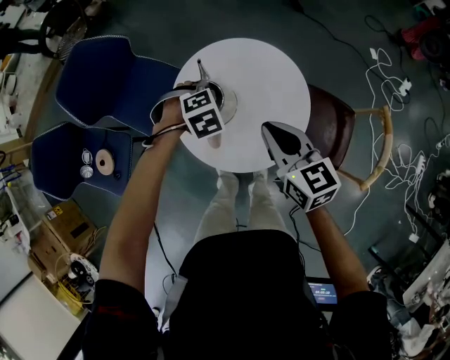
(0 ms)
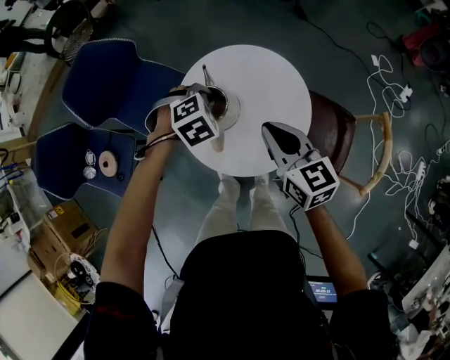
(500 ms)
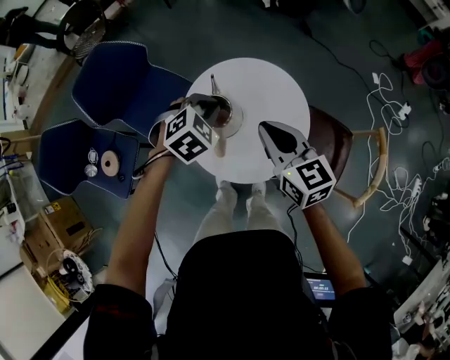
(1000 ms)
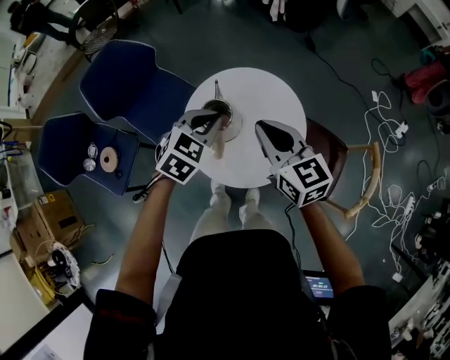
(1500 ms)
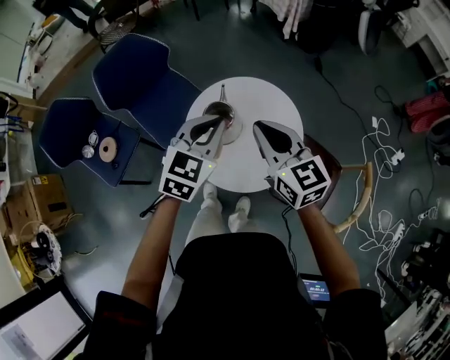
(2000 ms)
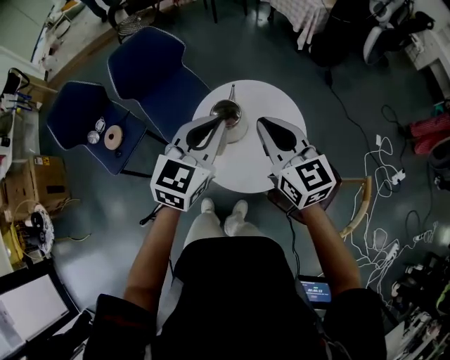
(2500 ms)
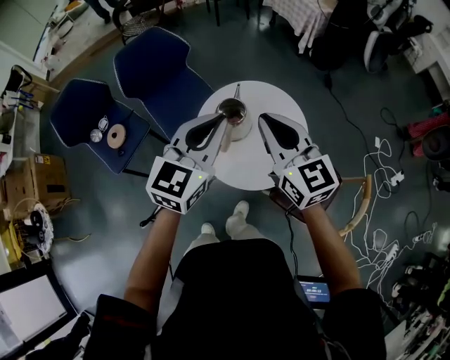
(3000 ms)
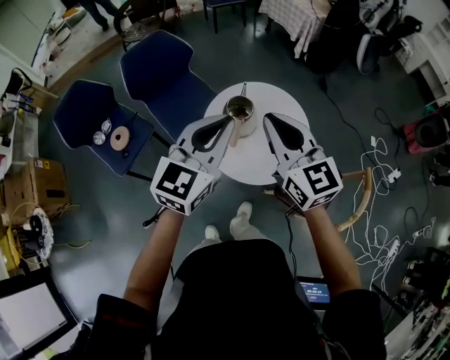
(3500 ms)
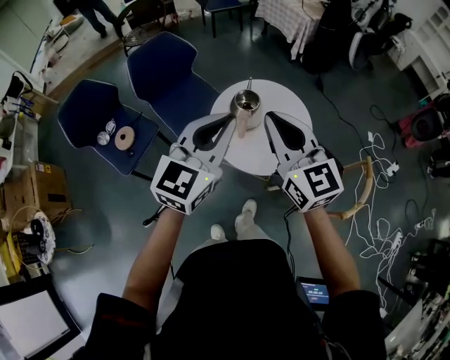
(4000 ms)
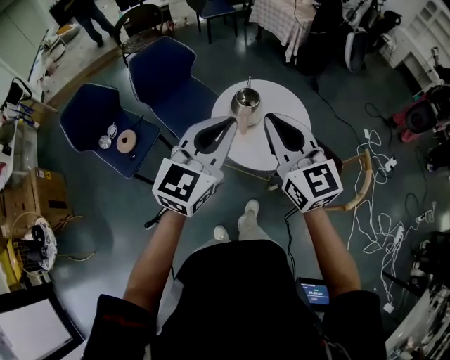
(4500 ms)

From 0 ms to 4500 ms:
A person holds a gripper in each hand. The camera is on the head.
From 0 ms to 2000 ms: The left gripper shifts about 25 cm upward, points its fingers about 50 degrees further upward, and closes up. Meanwhile the right gripper goes approximately 15 cm upward, and swivels some 20 degrees.
From 2000 ms to 4500 ms: Both grippers travel together backward, upward and to the left, about 35 cm. The left gripper rotates some 30 degrees.

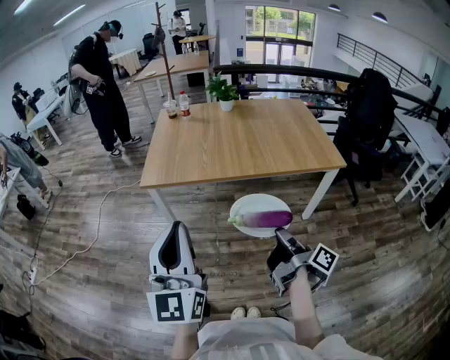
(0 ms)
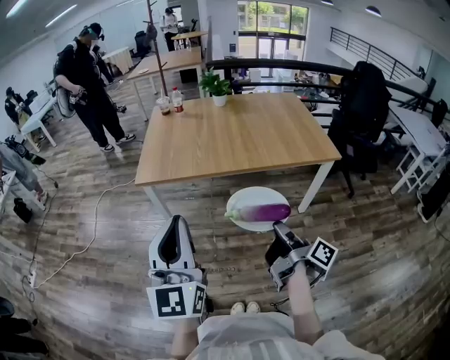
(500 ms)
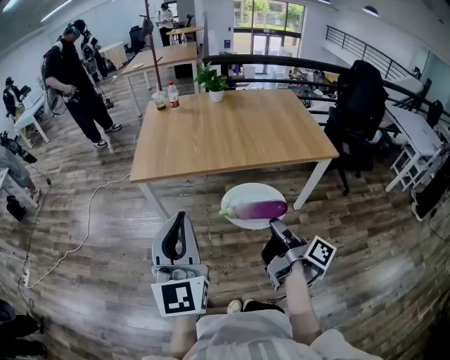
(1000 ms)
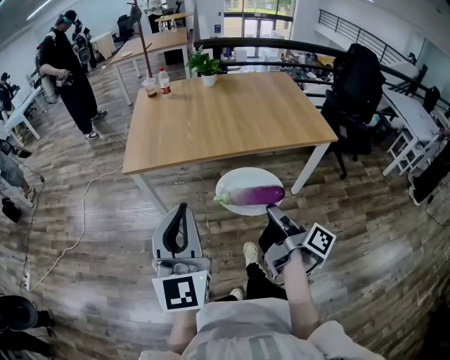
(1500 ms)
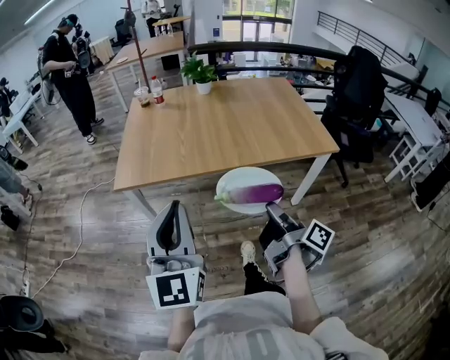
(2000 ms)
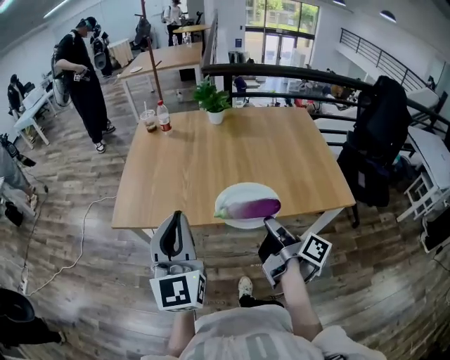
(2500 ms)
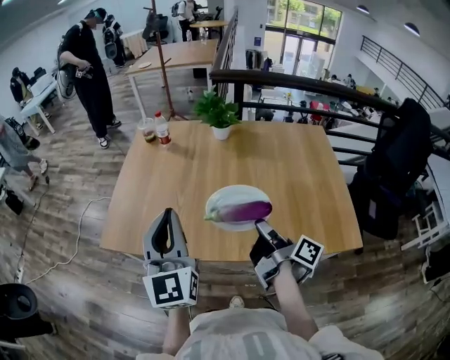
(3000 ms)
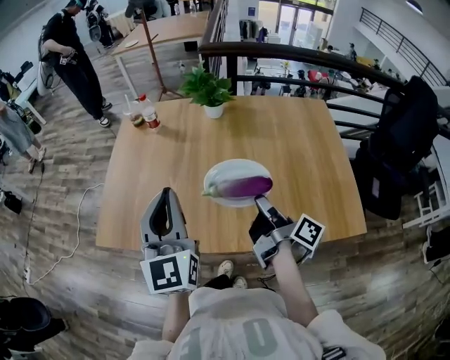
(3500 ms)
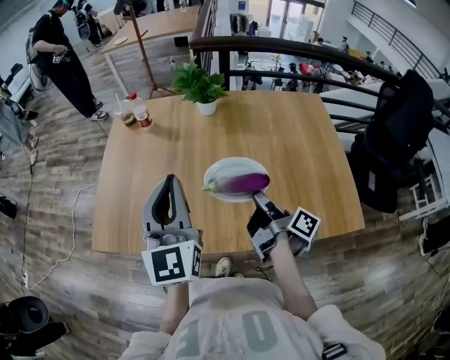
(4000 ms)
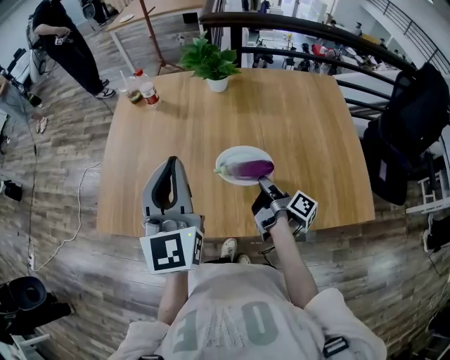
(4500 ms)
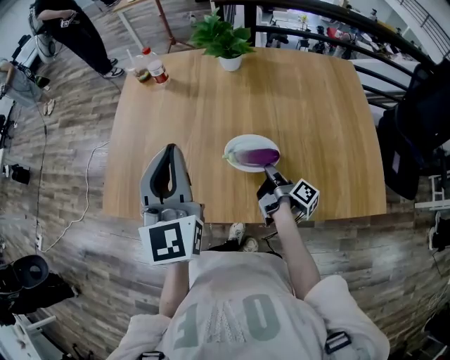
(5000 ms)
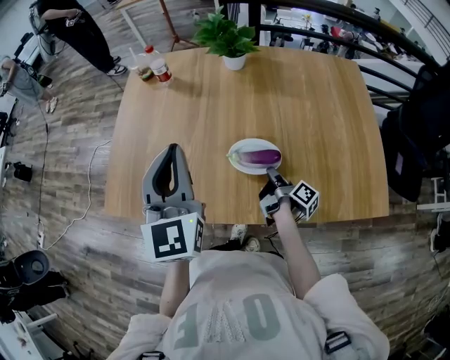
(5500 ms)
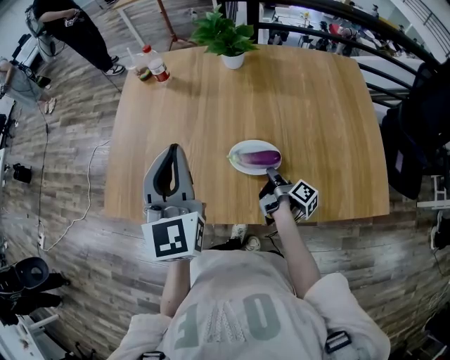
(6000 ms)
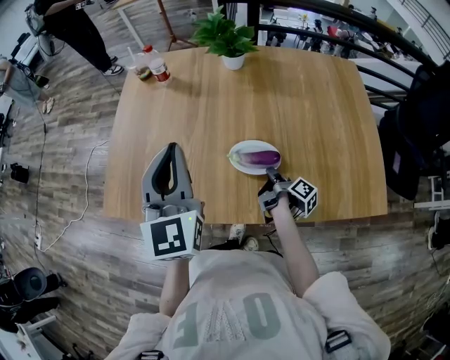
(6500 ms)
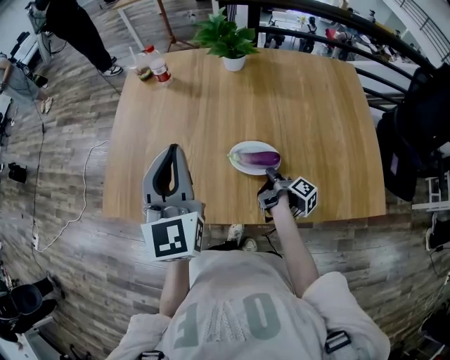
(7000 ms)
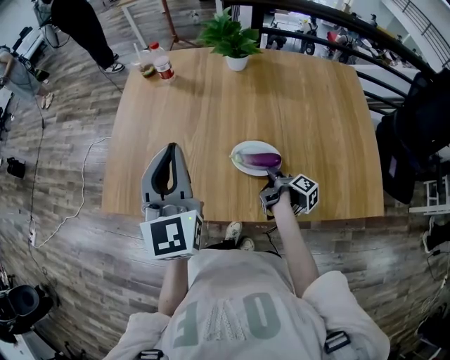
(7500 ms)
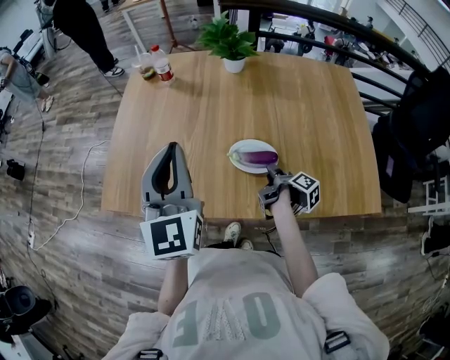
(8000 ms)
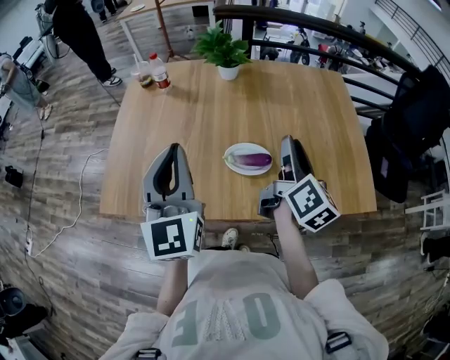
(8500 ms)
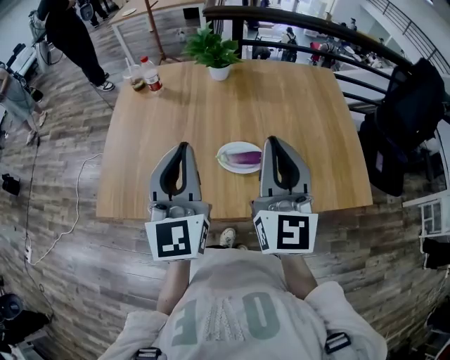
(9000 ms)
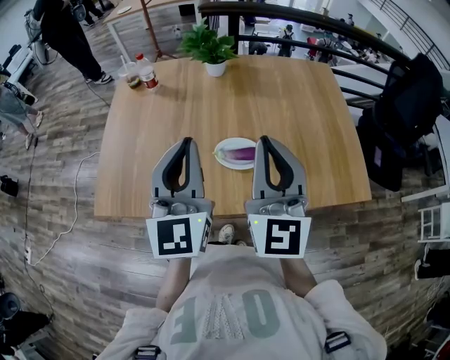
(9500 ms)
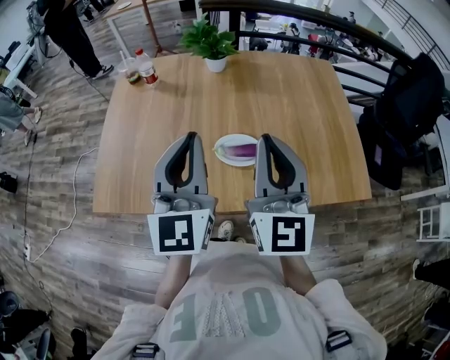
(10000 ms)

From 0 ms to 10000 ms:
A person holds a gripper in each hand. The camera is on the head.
From 0 ms to 2000 ms: The left gripper ends up roughly 15 cm from where it was.
From 2000 ms to 4000 ms: The left gripper moves approximately 40 cm.
From 4000 ms to 6000 ms: The left gripper shifts by roughly 5 cm.
From 8000 ms to 10000 ms: The left gripper ends up roughly 10 cm from where it was.

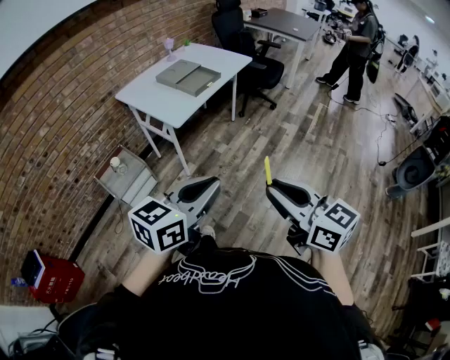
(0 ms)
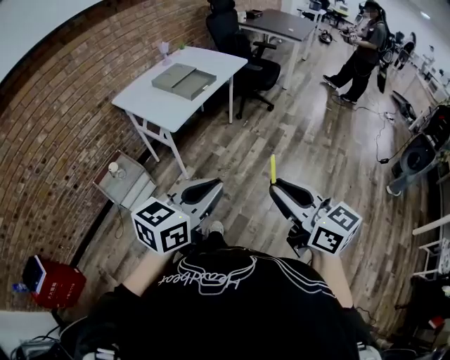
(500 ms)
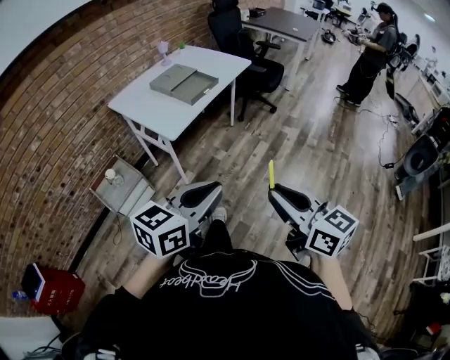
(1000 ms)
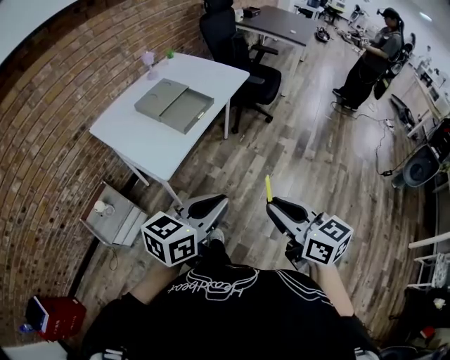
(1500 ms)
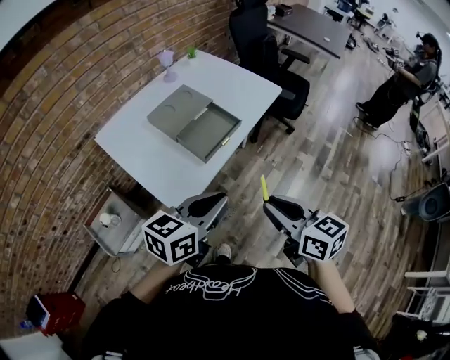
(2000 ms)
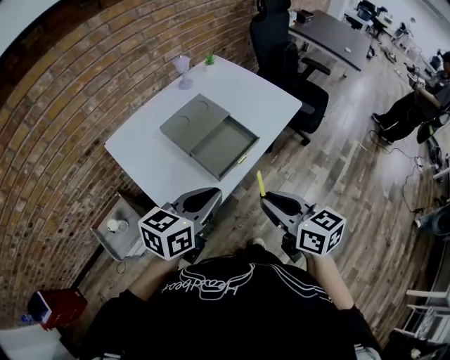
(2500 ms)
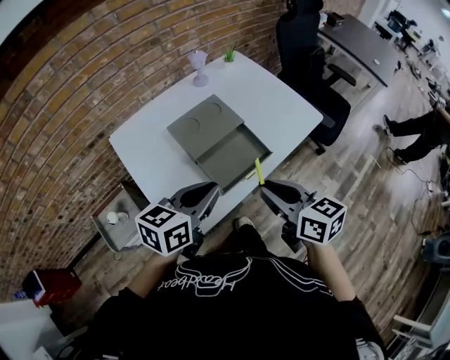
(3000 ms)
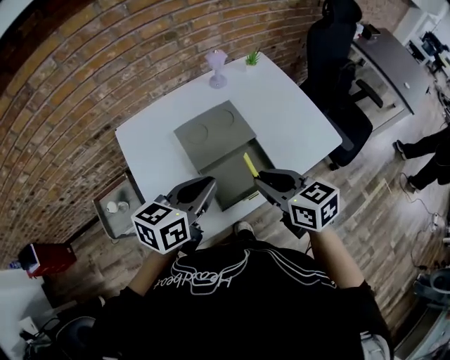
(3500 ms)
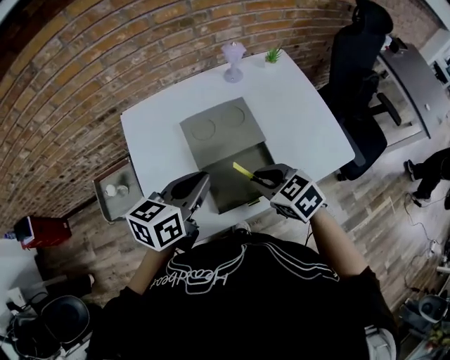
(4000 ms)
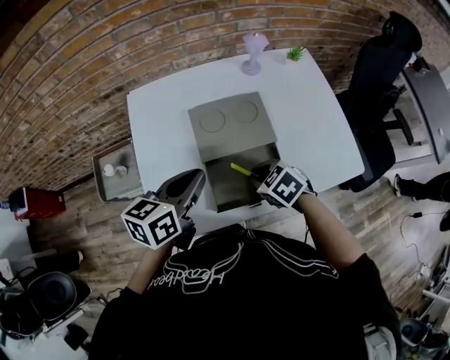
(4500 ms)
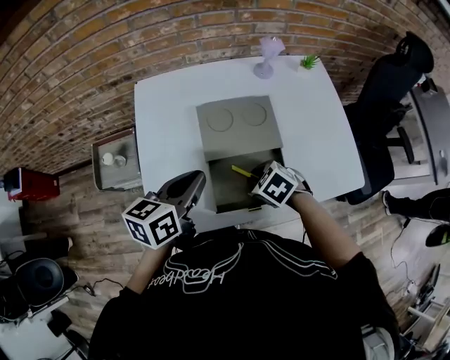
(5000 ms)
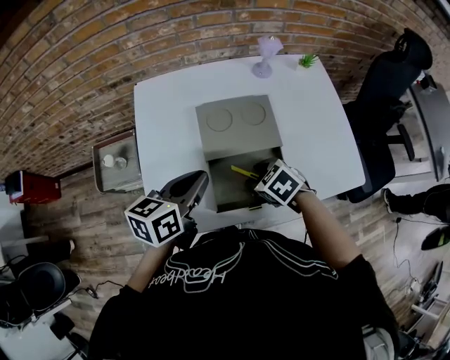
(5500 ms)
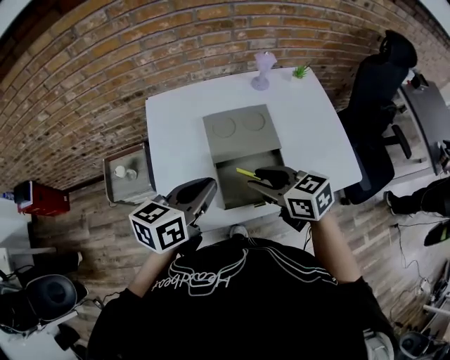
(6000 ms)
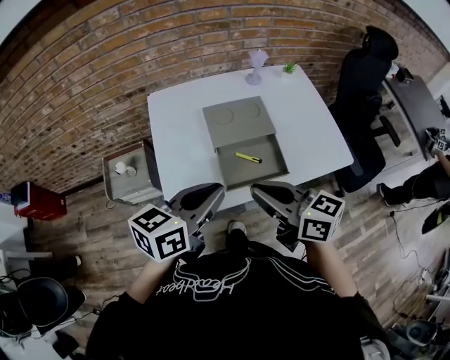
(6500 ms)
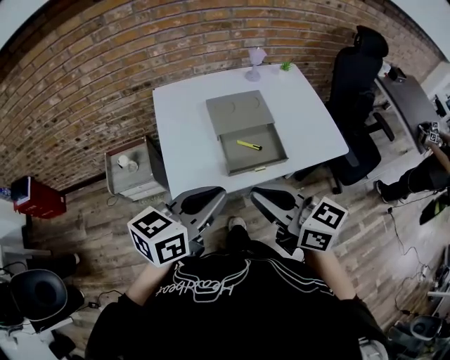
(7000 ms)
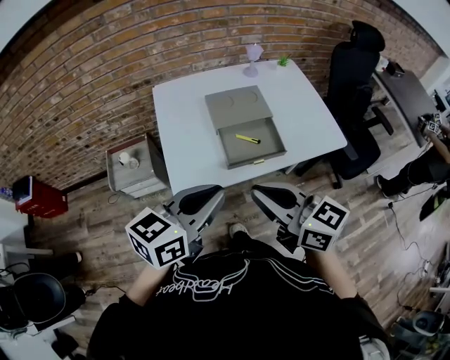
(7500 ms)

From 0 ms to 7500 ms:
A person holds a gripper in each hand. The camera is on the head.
From 0 ms to 2000 ms: The pair of grippers is taken forward, approximately 40 cm.
From 2000 ms to 4000 ms: The left gripper changes place by some 30 cm, and turns by some 40 degrees, while the right gripper changes place by roughly 35 cm, and changes its angle by roughly 60 degrees.
From 4000 ms to 5500 ms: The right gripper is displaced downward by about 10 cm, turns by roughly 20 degrees, and opens, while the left gripper changes place by roughly 5 cm.
From 5500 ms to 7500 ms: The left gripper heads backward and upward, covering some 25 cm, and changes its angle by roughly 20 degrees. Meanwhile the right gripper shifts approximately 35 cm upward and backward, points its fingers some 60 degrees further upward, and closes up.

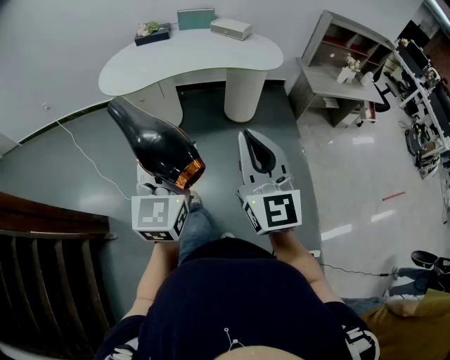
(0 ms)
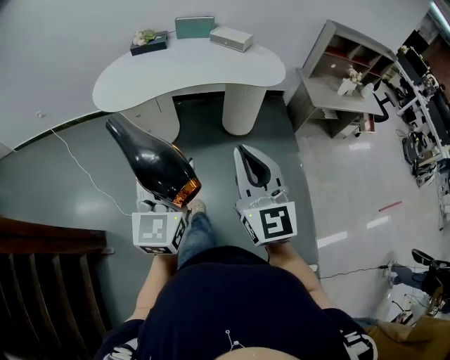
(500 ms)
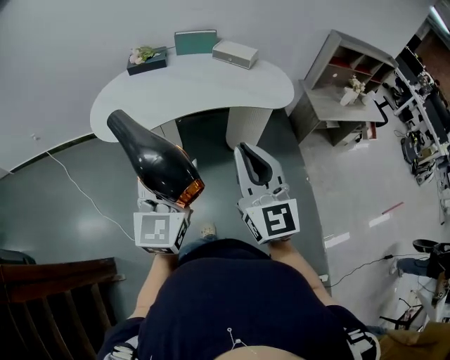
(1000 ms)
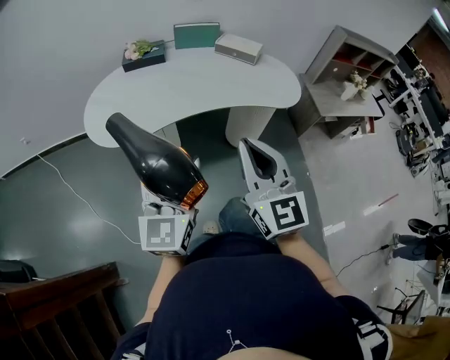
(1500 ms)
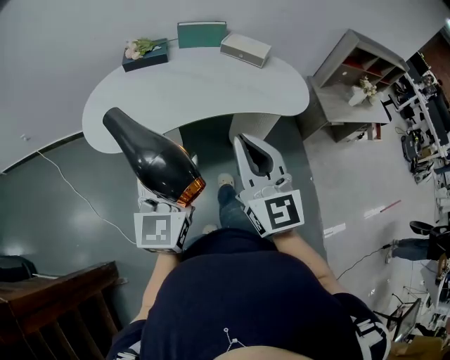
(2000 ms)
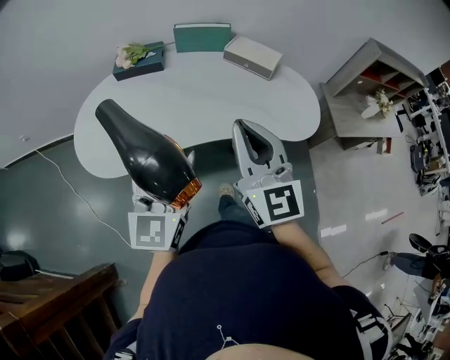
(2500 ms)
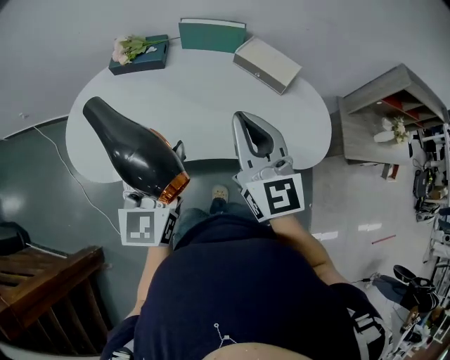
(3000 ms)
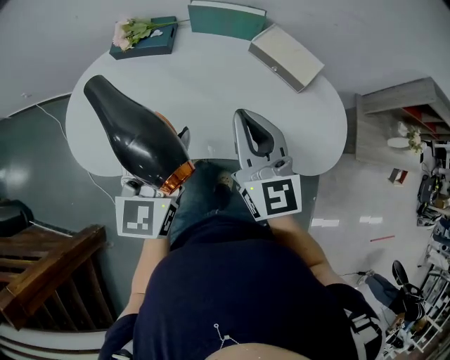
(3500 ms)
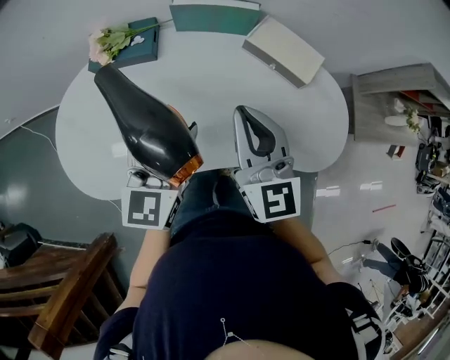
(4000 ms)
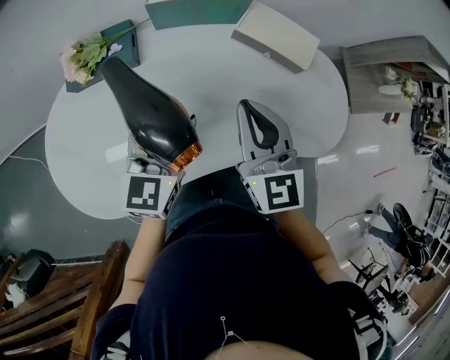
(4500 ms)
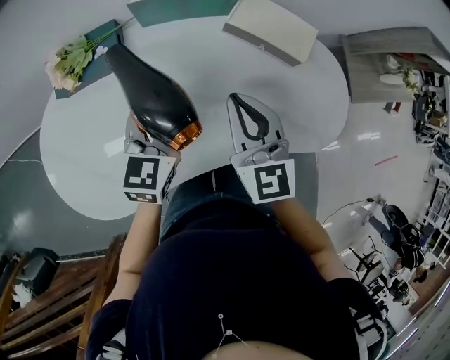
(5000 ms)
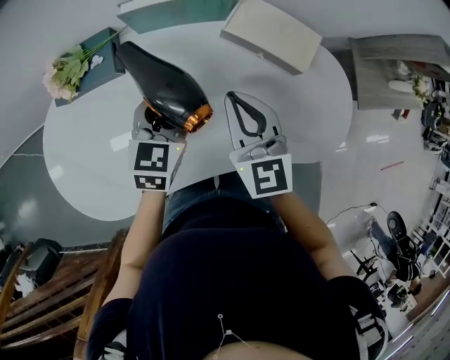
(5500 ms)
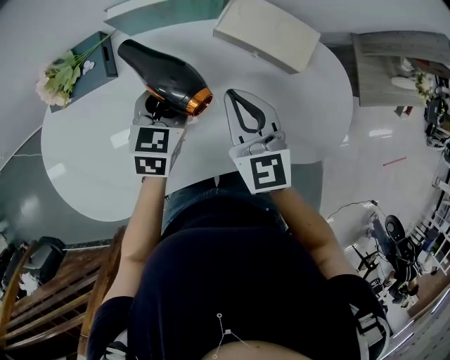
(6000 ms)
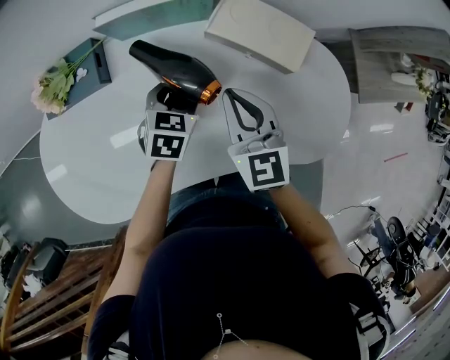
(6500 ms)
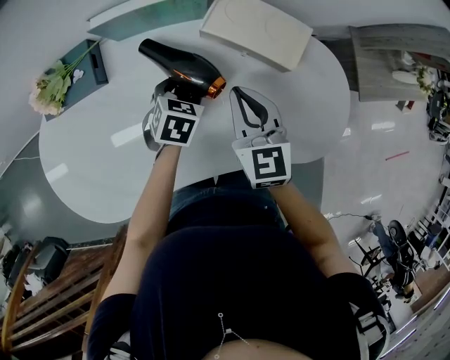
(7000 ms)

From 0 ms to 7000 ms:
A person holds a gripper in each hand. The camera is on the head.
From 0 ms to 2000 ms: Both grippers travel together forward, roughly 35 cm.
From 2000 ms to 3500 ms: Both grippers travel together forward, roughly 35 cm.
From 3500 ms to 5000 ms: The right gripper is displaced forward and downward by some 15 cm, and changes its angle by some 20 degrees. Meanwhile the left gripper moves forward and downward, approximately 20 cm, and rotates about 30 degrees.
From 5000 ms to 7000 ms: The right gripper travels downward, to the right and forward by about 15 cm. Meanwhile the left gripper travels downward, to the right and forward by some 20 cm, and tilts its fingers about 40 degrees downward.
